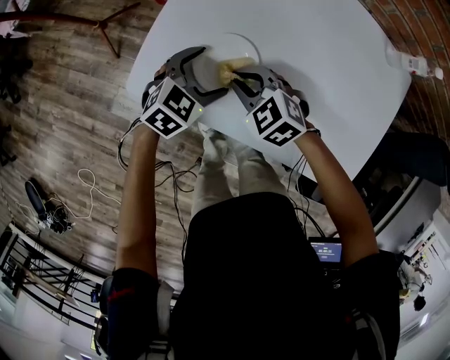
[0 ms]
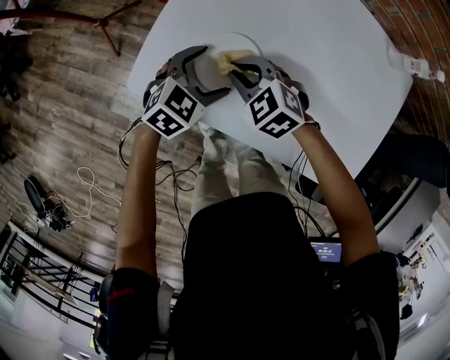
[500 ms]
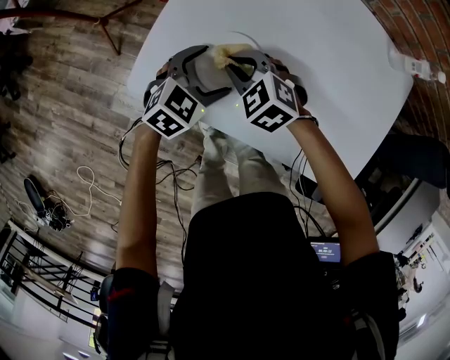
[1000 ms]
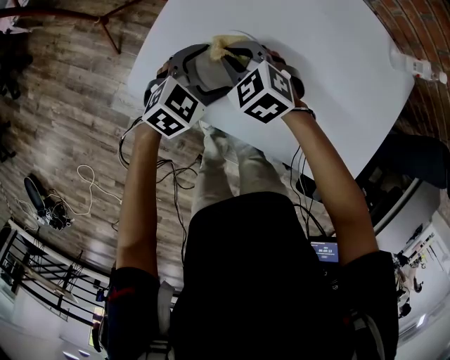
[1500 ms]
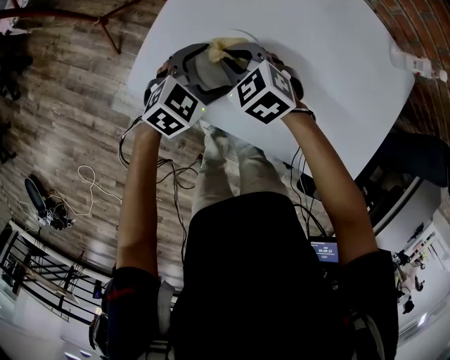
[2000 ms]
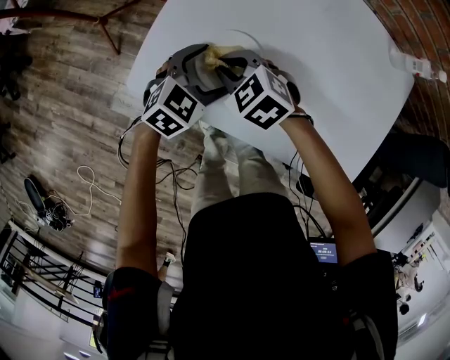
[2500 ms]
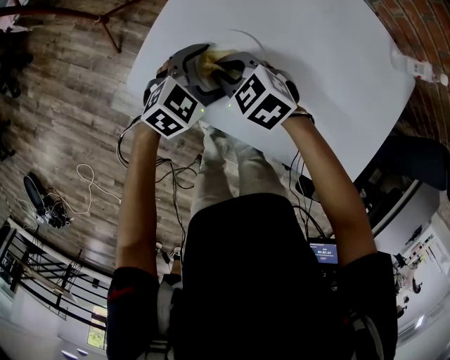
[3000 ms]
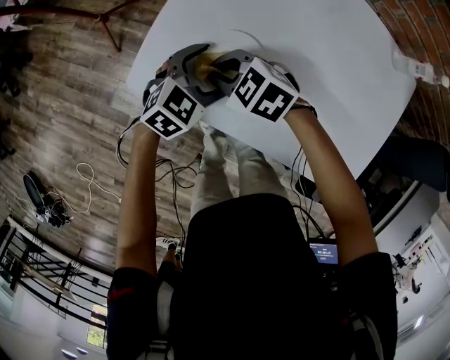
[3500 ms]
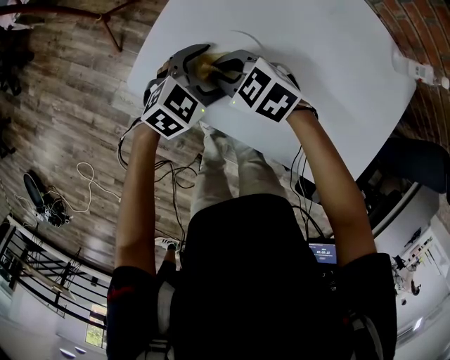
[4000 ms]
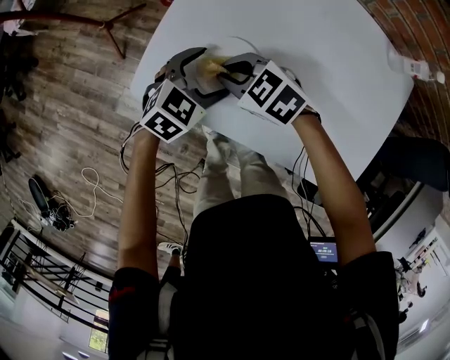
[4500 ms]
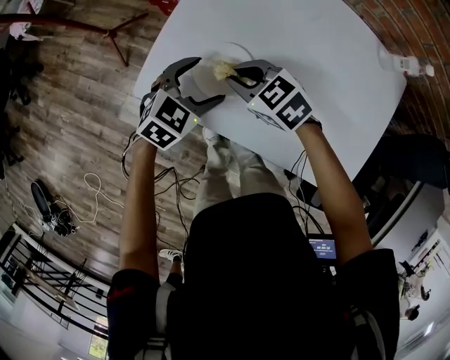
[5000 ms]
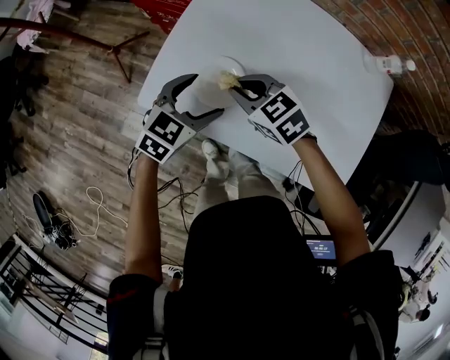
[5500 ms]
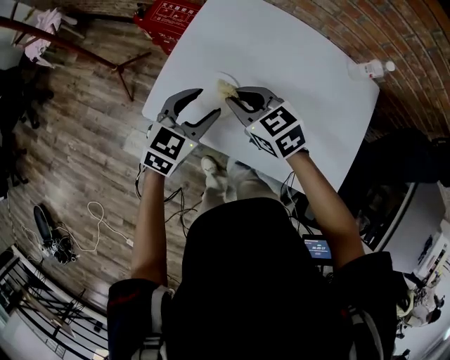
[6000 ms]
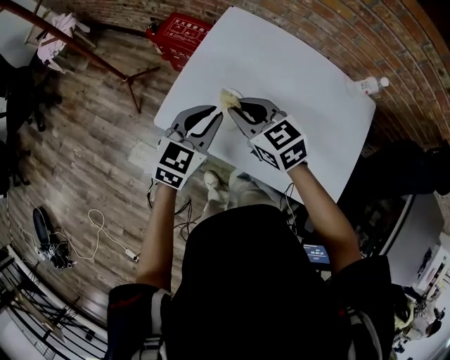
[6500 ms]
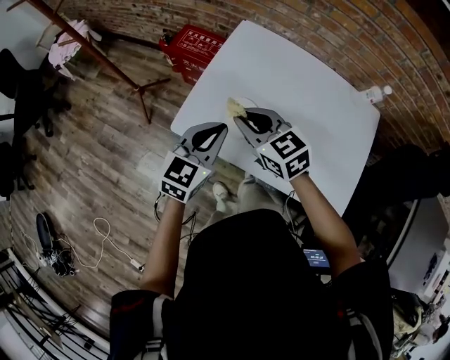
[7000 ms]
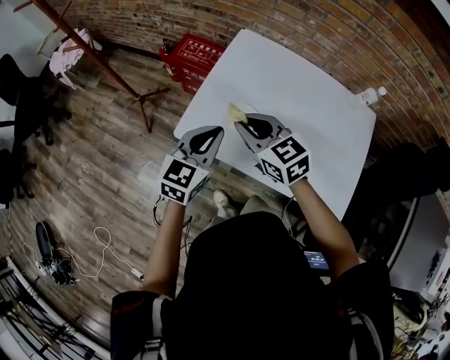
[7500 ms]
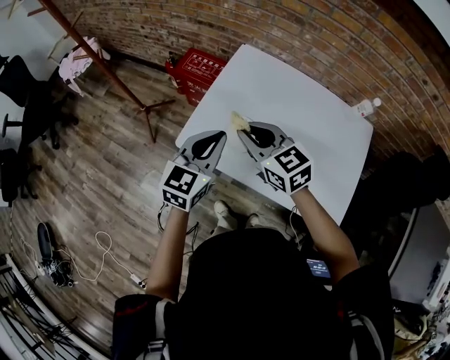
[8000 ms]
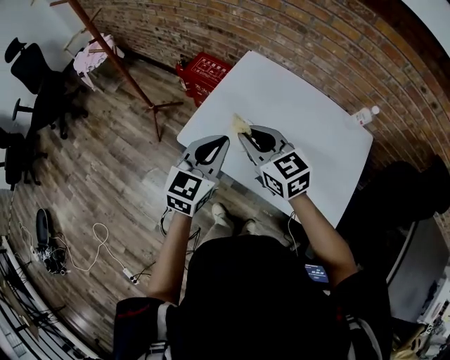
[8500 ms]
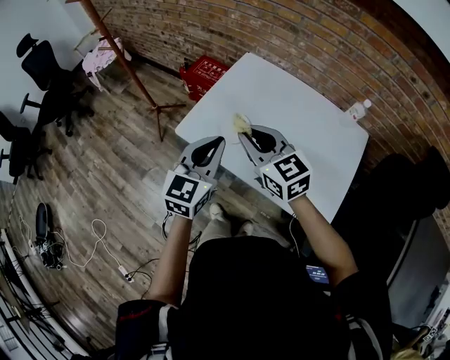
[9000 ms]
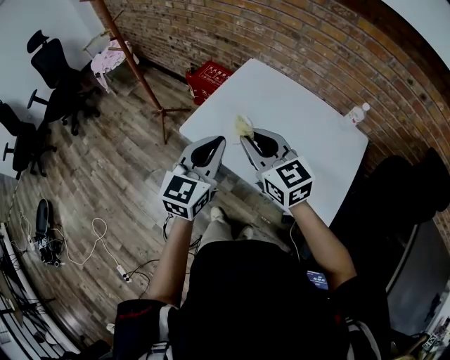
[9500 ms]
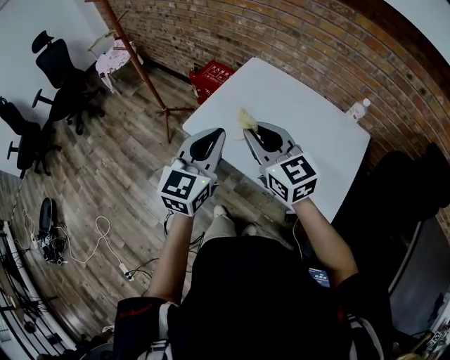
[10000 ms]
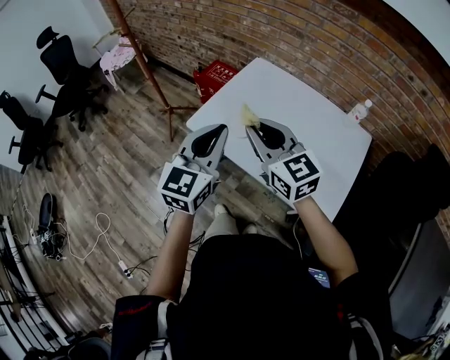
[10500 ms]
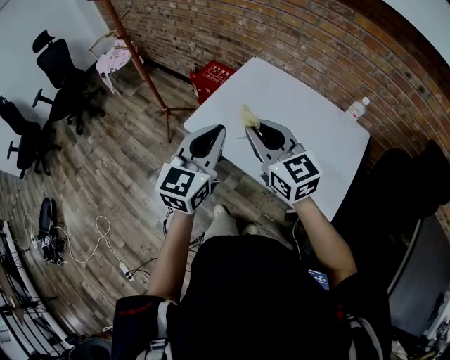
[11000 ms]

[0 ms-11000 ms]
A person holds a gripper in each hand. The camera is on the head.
0 ms to 2000 ms: The right gripper moves roughly 5 cm.
2000 ms to 3500 ms: The right gripper moves about 5 cm.
3500 ms to 5500 ms: Both grippers travel together upward, roughly 10 cm. The right gripper turns by roughly 20 degrees.
5500 ms to 7500 ms: The two grippers go roughly 15 cm upward and to the left. The right gripper rotates some 20 degrees. The left gripper changes its angle by approximately 20 degrees, and closes.
7500 ms to 9000 ms: The right gripper heads backward, upward and to the right, covering about 15 cm; the left gripper heads backward and upward, covering roughly 15 cm.
9000 ms to 11000 ms: The left gripper heads upward, covering some 5 cm; the right gripper heads backward and upward, covering about 10 cm.

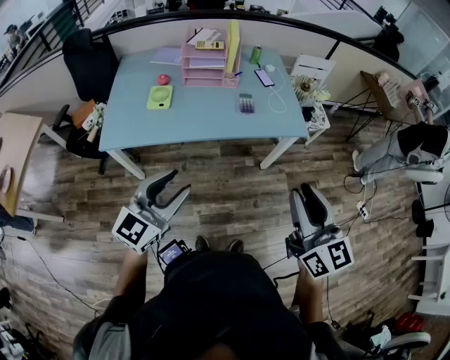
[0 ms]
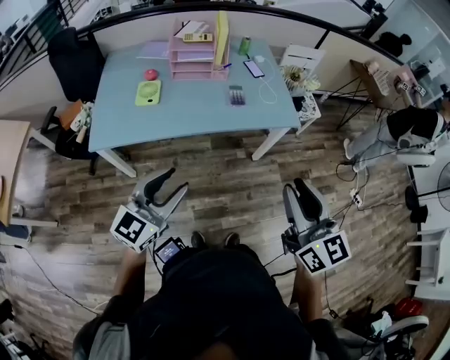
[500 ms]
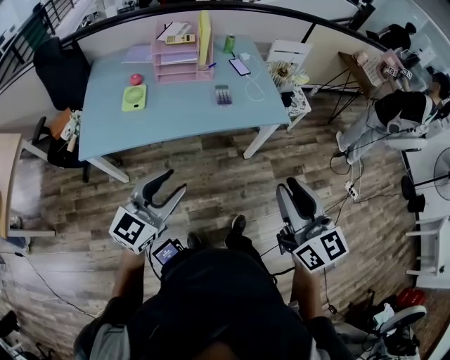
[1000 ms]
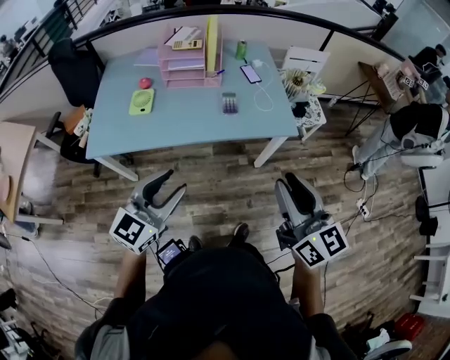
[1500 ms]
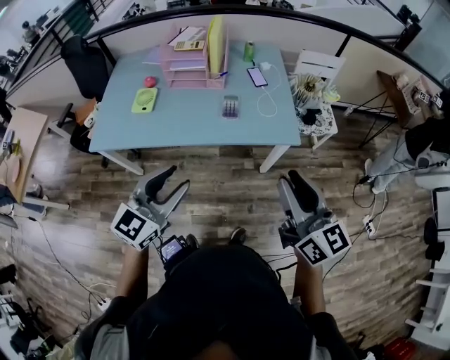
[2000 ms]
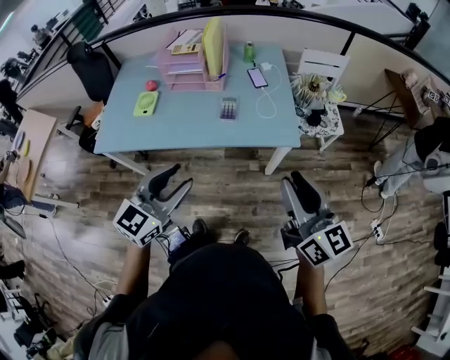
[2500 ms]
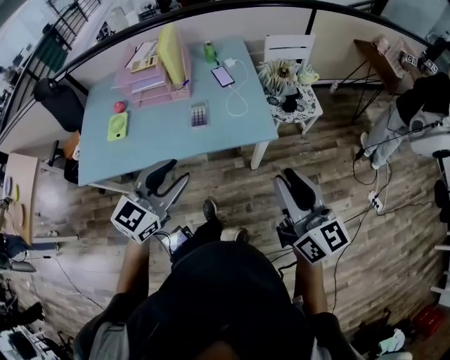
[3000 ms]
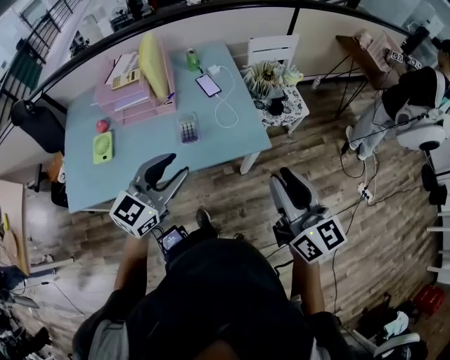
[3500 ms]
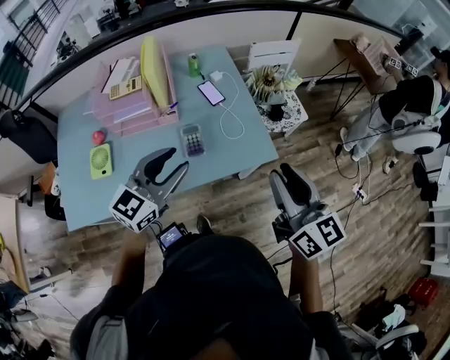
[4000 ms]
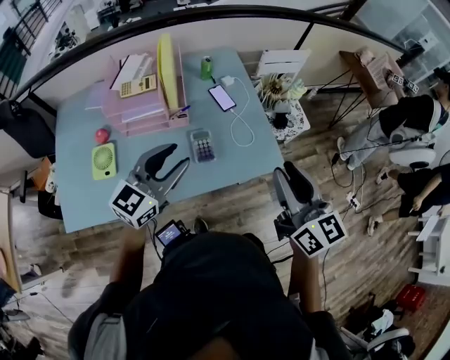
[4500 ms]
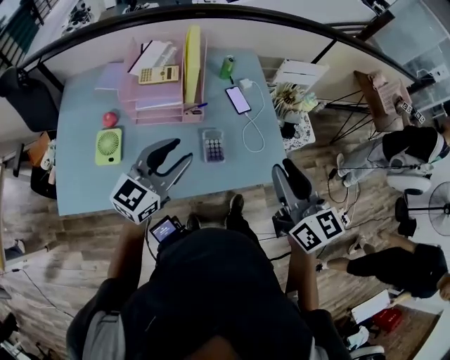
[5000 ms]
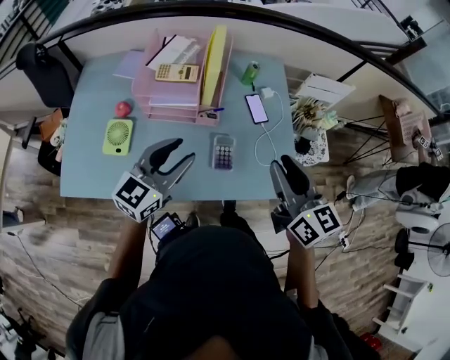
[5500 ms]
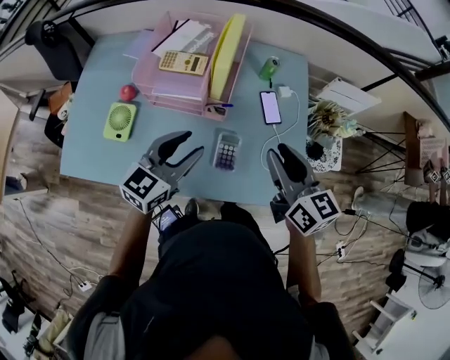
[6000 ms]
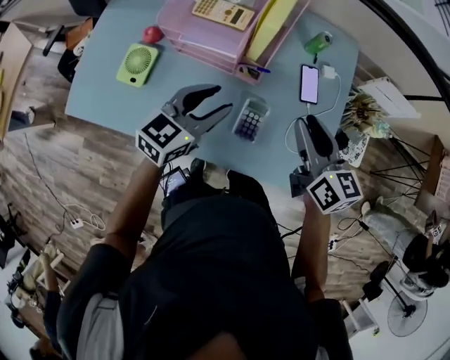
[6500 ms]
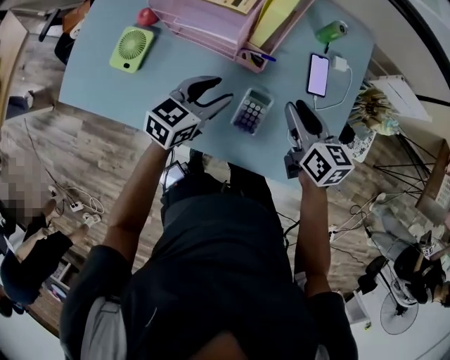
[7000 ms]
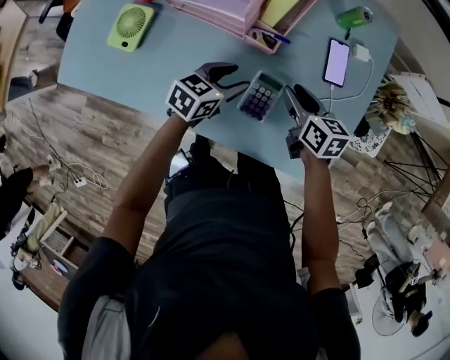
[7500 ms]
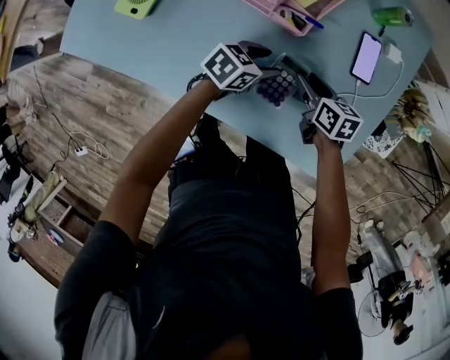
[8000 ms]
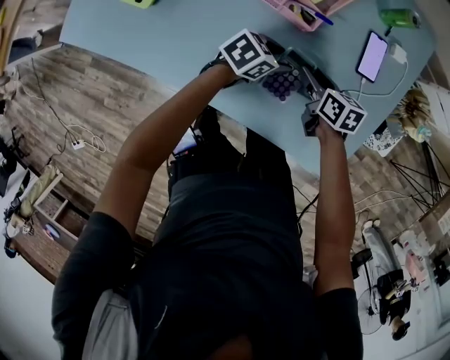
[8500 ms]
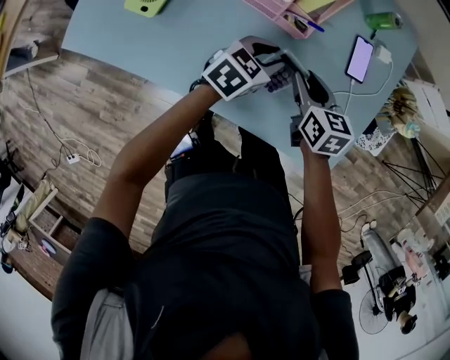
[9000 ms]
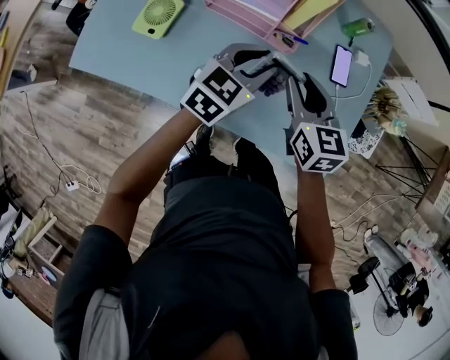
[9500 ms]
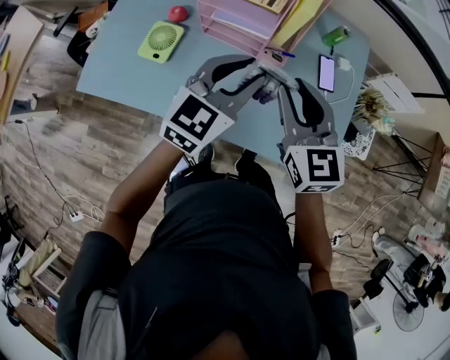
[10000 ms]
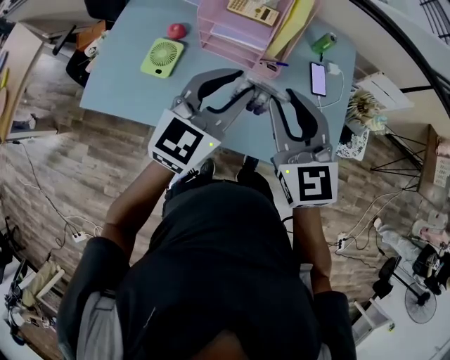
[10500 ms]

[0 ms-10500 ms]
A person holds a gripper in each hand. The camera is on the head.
0 ms to 2000 ms: The left gripper goes some 20 cm to the right and forward, while the right gripper goes some 20 cm forward and to the right.
2000 ms to 4000 ms: The left gripper moves forward, roughly 30 cm. The right gripper goes about 20 cm forward.
4000 ms to 6500 ms: The right gripper ends up some 40 cm from where it was, and turns by about 40 degrees. The left gripper ends up roughly 25 cm from where it was, and rotates some 30 degrees.
6500 ms to 8500 ms: The grippers both shift downward by roughly 30 cm. The right gripper swivels approximately 30 degrees; the left gripper rotates some 40 degrees.
8500 ms to 10500 ms: Both grippers travel together upward, roughly 40 cm. The right gripper tilts its fingers about 30 degrees upward, while the left gripper tilts its fingers some 40 degrees upward.

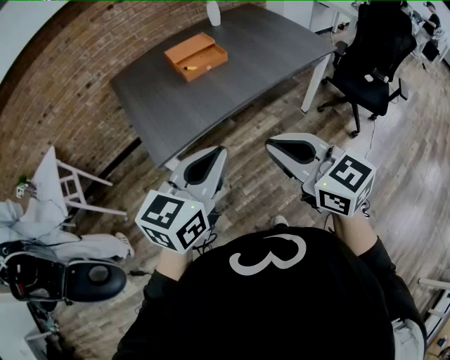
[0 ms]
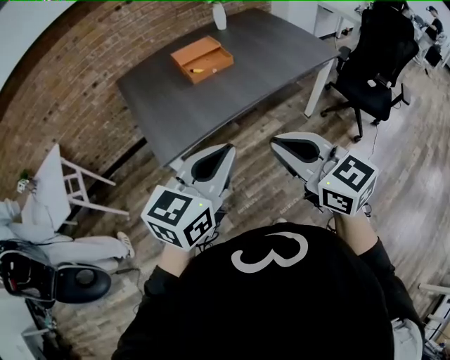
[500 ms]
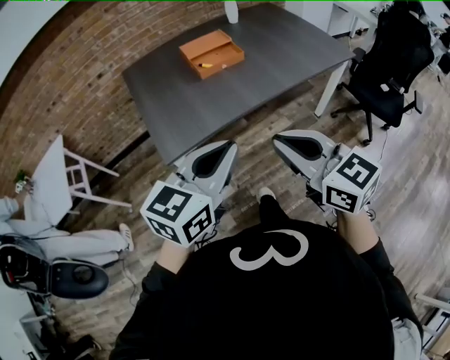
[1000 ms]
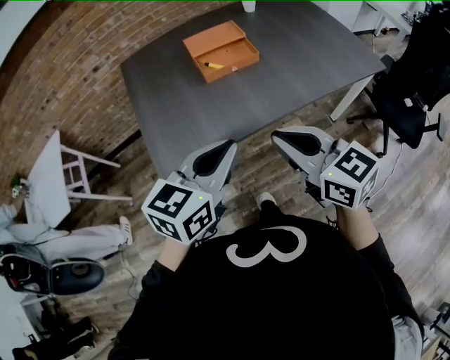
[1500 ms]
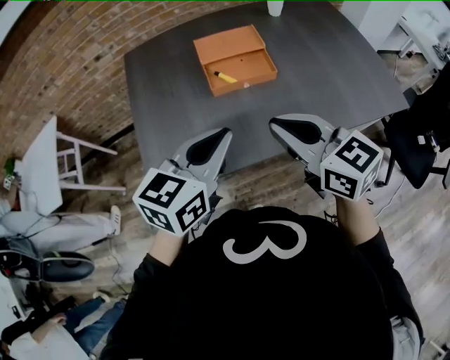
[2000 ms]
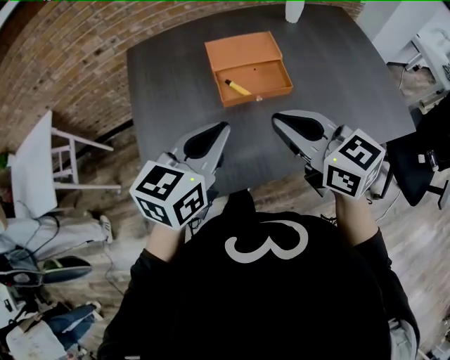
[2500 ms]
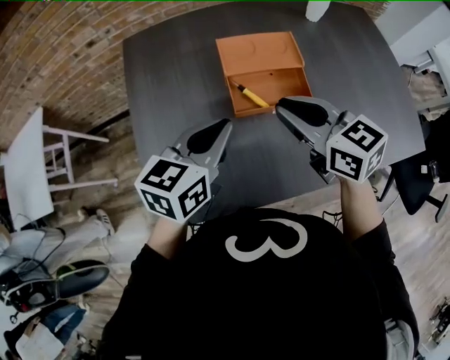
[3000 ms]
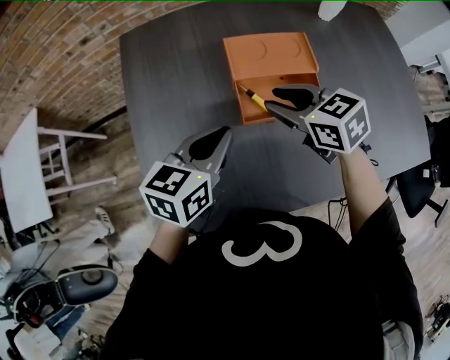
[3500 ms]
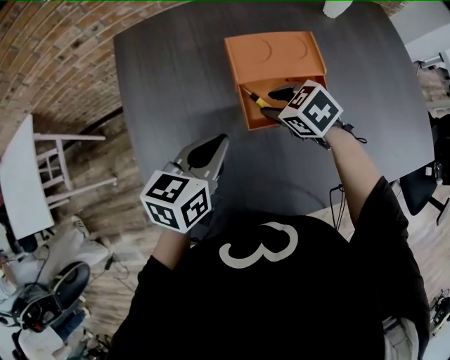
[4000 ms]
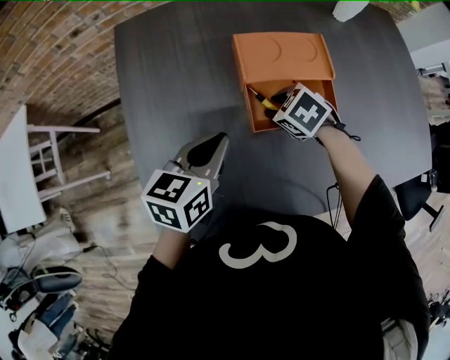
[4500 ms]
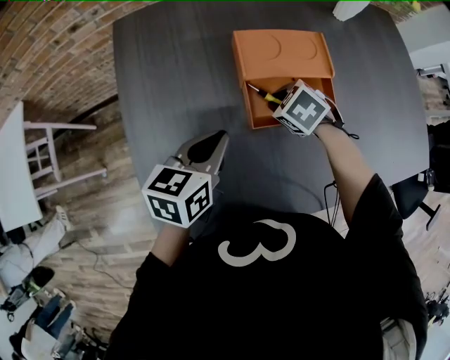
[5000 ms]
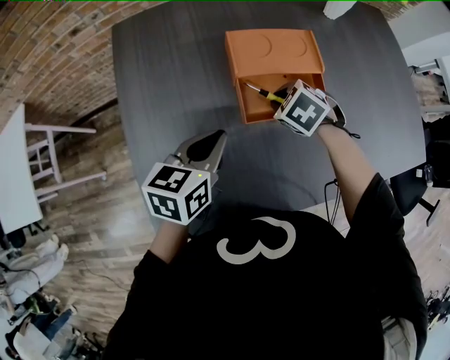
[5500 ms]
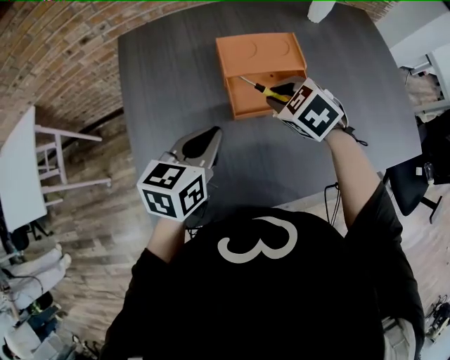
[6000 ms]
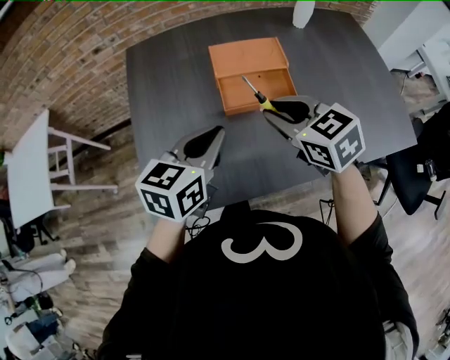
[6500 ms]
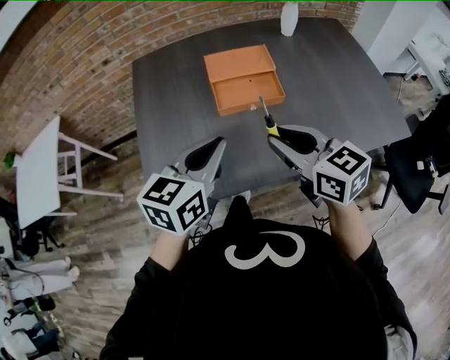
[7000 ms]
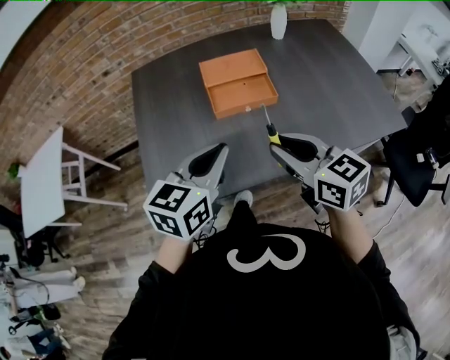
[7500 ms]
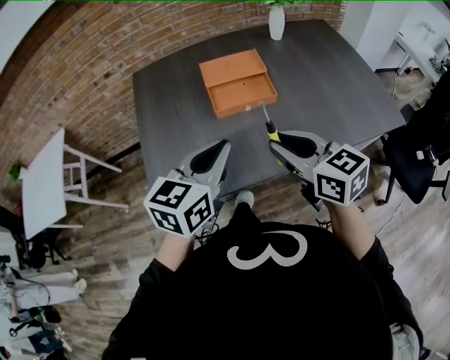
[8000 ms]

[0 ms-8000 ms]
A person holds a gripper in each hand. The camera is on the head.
0 ms to 2000 ms: The two grippers go roughly 30 cm forward.
2000 ms to 4000 ms: The two grippers go some 30 cm forward and downward. The right gripper tips its fingers downward by roughly 40 degrees, and opens up. The left gripper swivels approximately 20 degrees.
4000 ms to 6000 ms: The right gripper goes about 5 cm upward, and closes up.
6000 ms to 8000 ms: The right gripper heads backward and upward, covering roughly 25 cm, and angles its fingers upward, by approximately 40 degrees. The left gripper moves backward, upward and to the right, approximately 20 cm.
